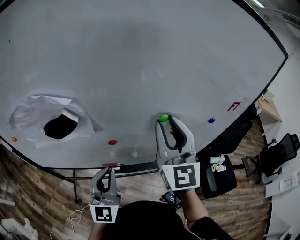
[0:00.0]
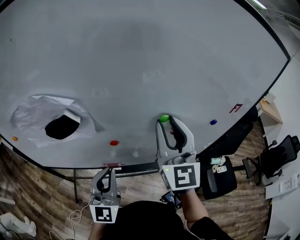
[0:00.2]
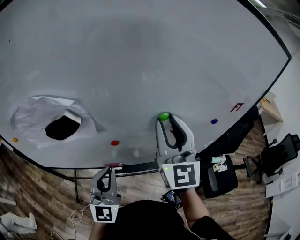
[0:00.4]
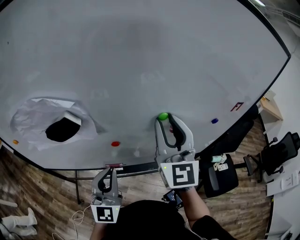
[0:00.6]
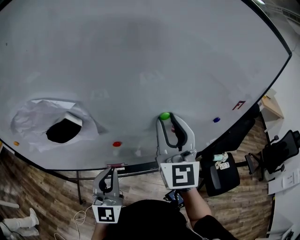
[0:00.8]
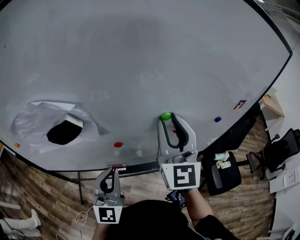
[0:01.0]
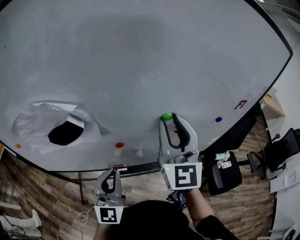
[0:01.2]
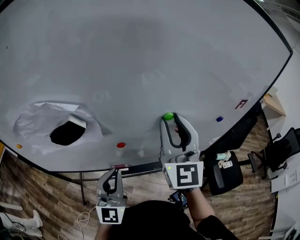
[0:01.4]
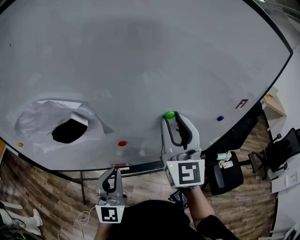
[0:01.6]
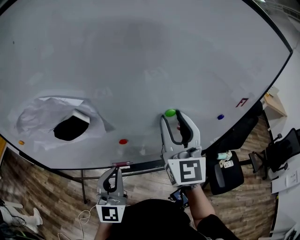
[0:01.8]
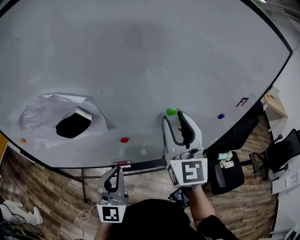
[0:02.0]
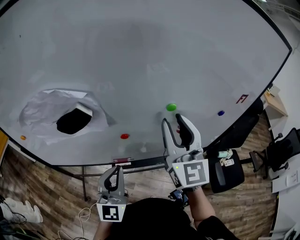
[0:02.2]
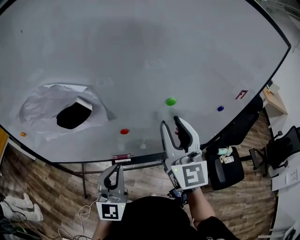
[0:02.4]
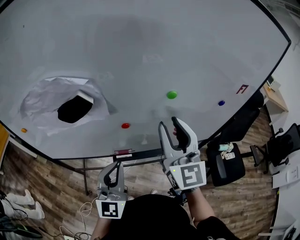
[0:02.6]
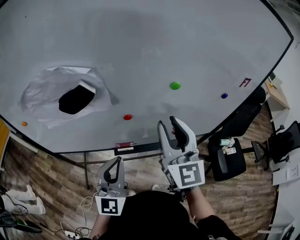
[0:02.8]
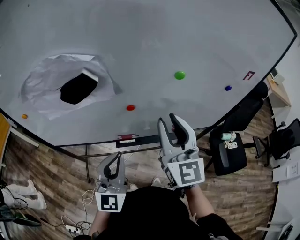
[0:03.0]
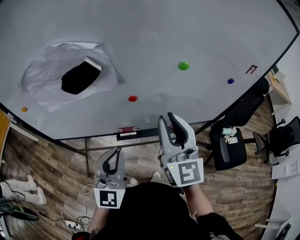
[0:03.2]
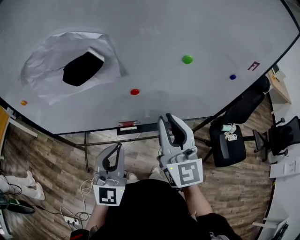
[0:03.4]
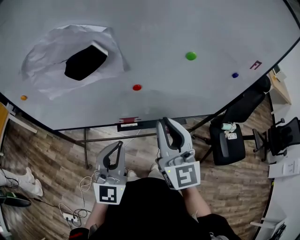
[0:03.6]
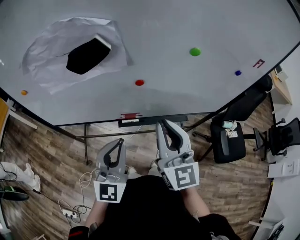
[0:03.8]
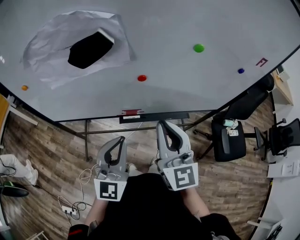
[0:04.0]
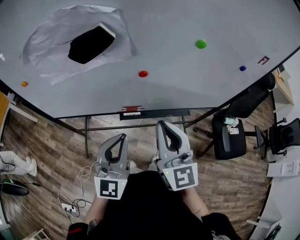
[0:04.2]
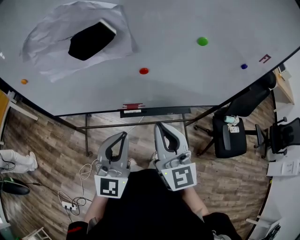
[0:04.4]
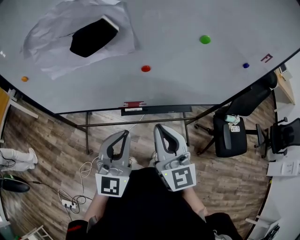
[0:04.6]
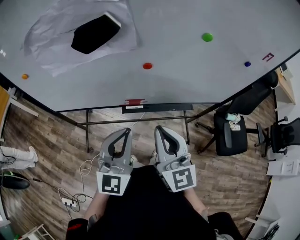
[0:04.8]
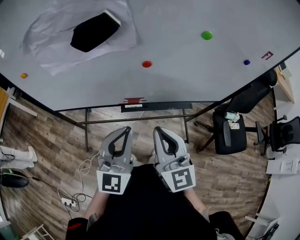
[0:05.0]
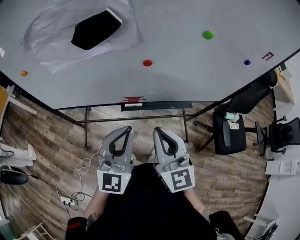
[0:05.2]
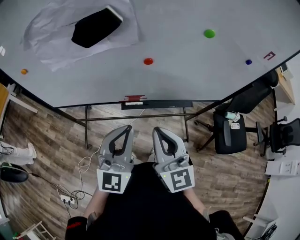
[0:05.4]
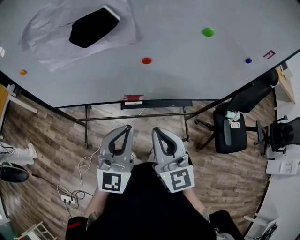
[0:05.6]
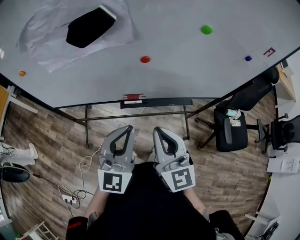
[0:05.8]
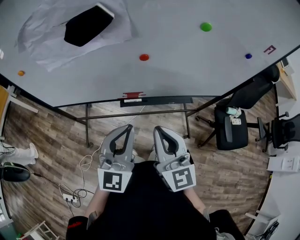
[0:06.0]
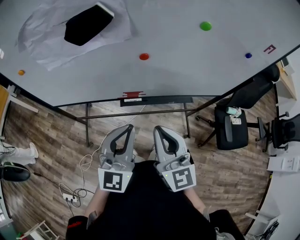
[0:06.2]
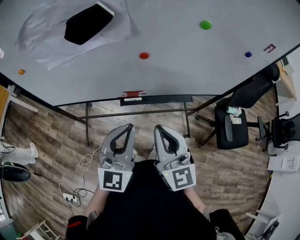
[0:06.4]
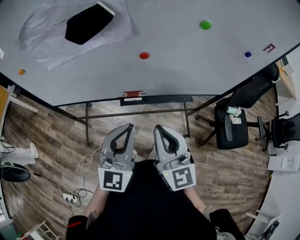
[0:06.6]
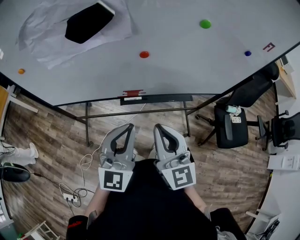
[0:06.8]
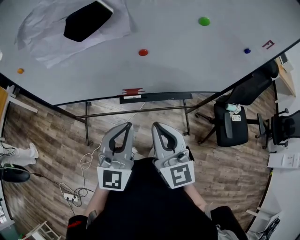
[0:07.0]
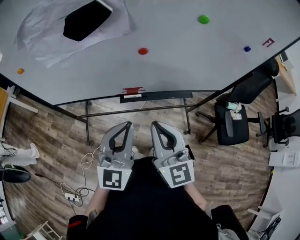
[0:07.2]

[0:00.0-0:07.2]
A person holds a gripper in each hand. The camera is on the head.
0:00.0 to 0:01.4: The grippers move only a little.
0:01.4 to 0:02.8: The right gripper goes approximately 10 cm backward and downward. Meanwhile the left gripper moves backward, roughly 5 cm.
0:02.8 to 0:04.4: The right gripper travels backward, downward and to the left by approximately 15 cm, and closes up, while the left gripper travels backward by about 5 cm.
0:04.4 to 0:05.8: The right gripper moves about 5 cm.
0:05.8 to 0:07.2: The two grippers keep their place.

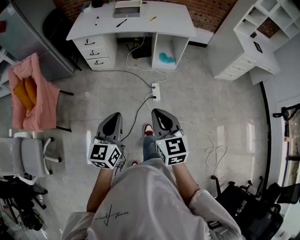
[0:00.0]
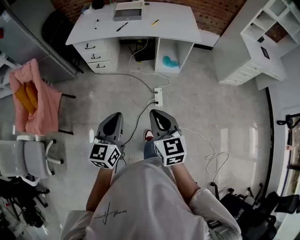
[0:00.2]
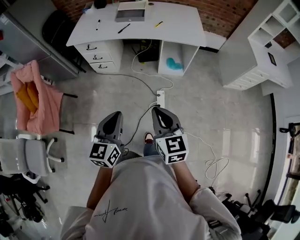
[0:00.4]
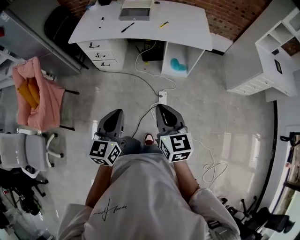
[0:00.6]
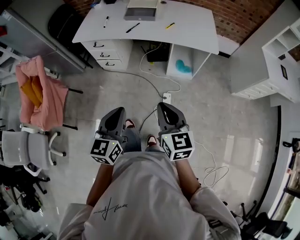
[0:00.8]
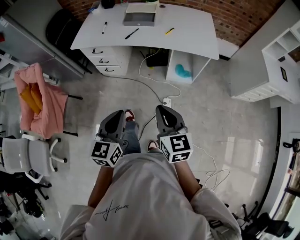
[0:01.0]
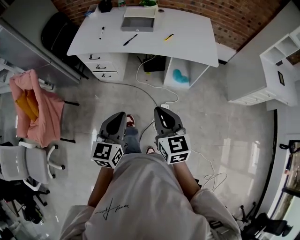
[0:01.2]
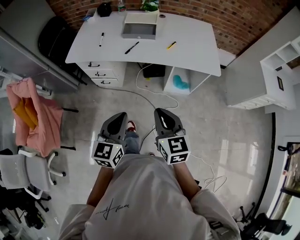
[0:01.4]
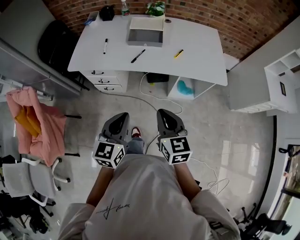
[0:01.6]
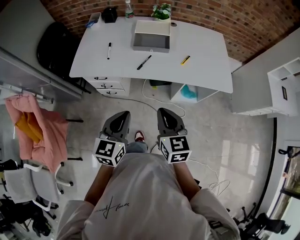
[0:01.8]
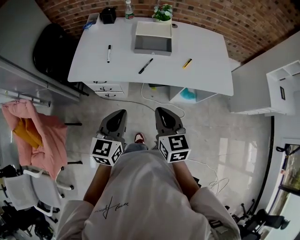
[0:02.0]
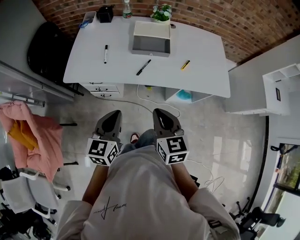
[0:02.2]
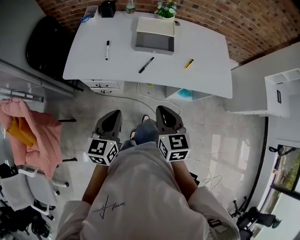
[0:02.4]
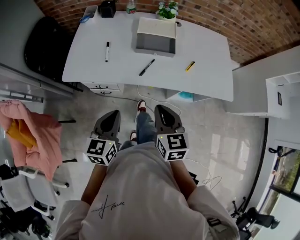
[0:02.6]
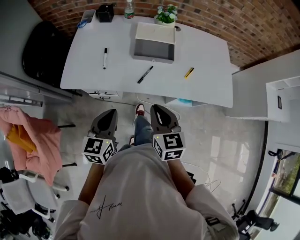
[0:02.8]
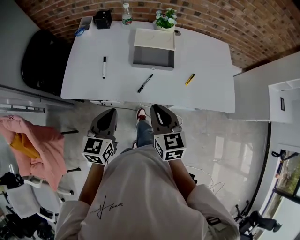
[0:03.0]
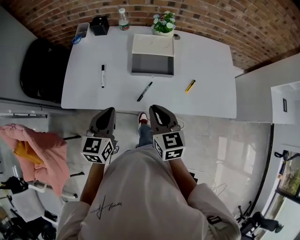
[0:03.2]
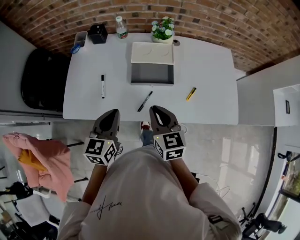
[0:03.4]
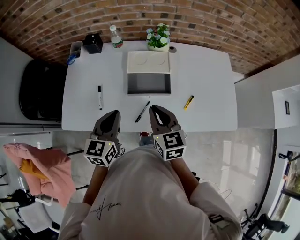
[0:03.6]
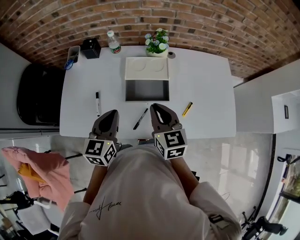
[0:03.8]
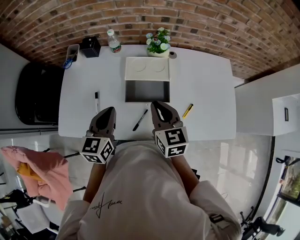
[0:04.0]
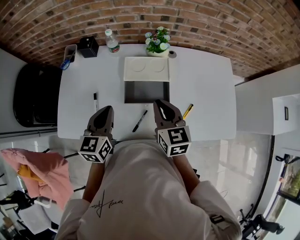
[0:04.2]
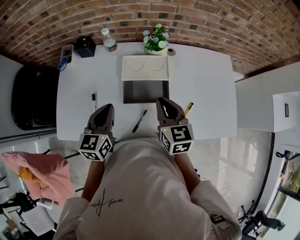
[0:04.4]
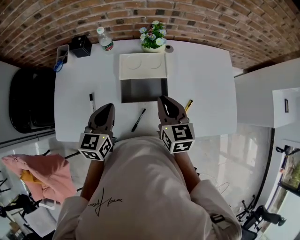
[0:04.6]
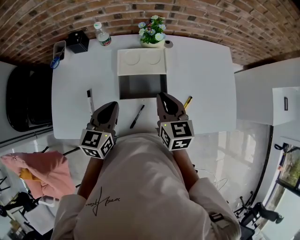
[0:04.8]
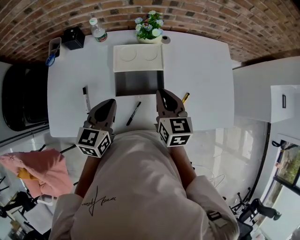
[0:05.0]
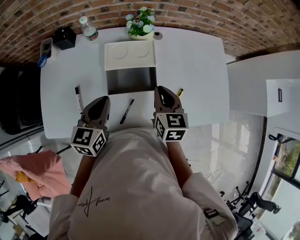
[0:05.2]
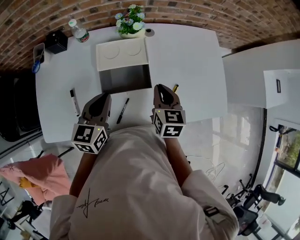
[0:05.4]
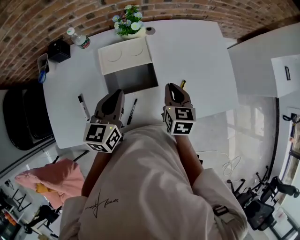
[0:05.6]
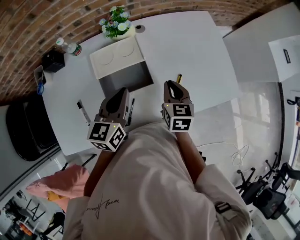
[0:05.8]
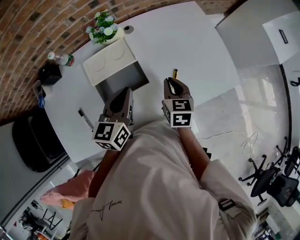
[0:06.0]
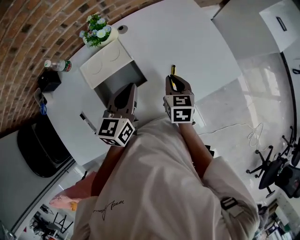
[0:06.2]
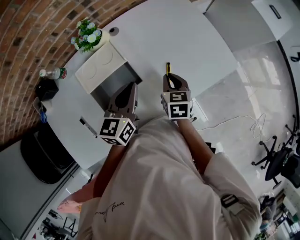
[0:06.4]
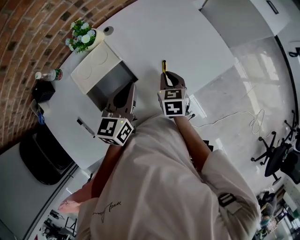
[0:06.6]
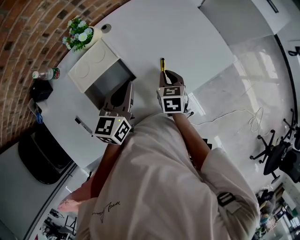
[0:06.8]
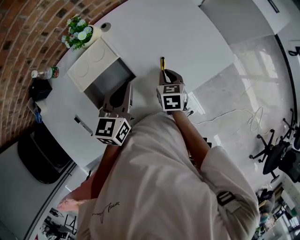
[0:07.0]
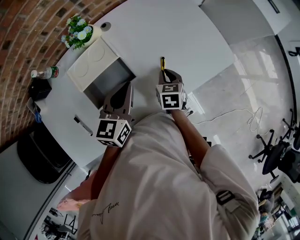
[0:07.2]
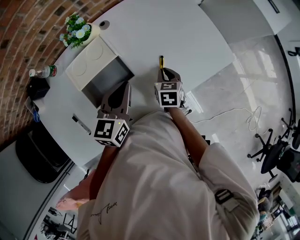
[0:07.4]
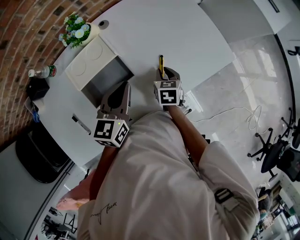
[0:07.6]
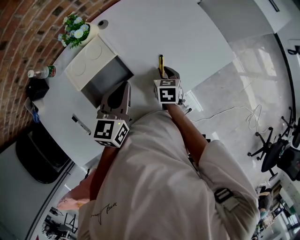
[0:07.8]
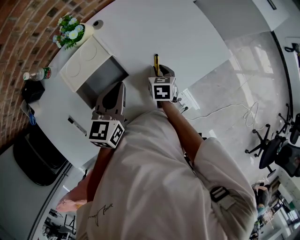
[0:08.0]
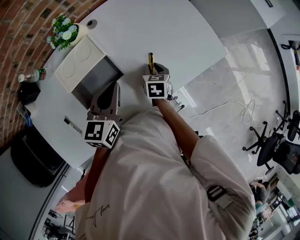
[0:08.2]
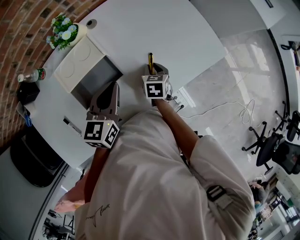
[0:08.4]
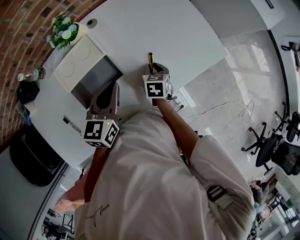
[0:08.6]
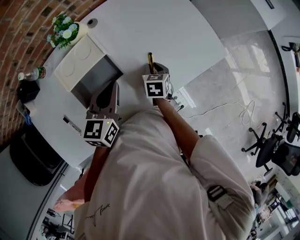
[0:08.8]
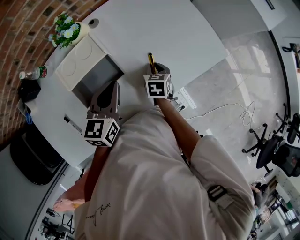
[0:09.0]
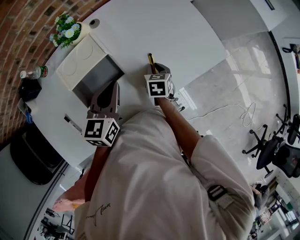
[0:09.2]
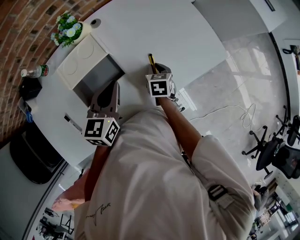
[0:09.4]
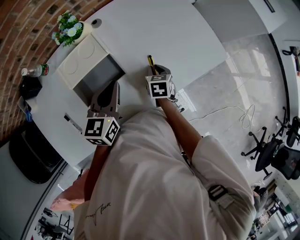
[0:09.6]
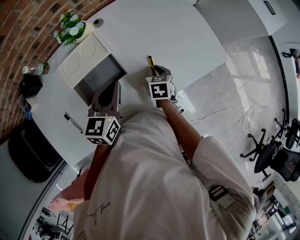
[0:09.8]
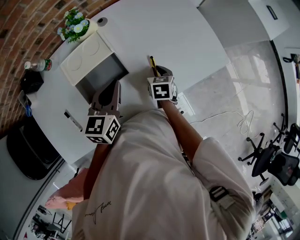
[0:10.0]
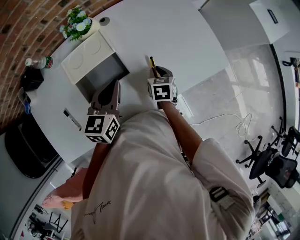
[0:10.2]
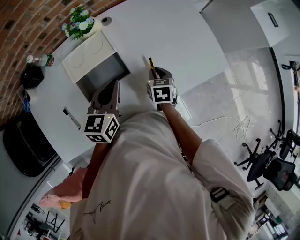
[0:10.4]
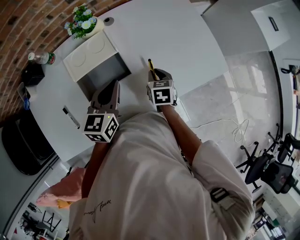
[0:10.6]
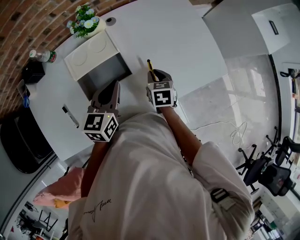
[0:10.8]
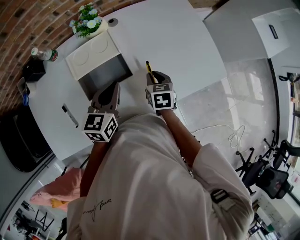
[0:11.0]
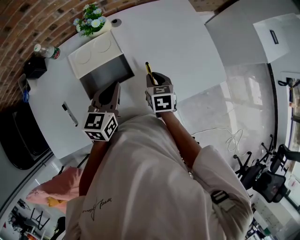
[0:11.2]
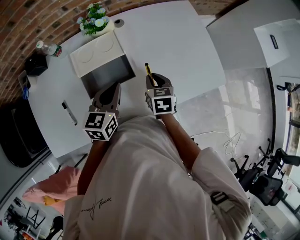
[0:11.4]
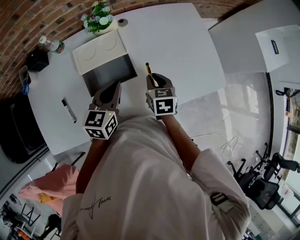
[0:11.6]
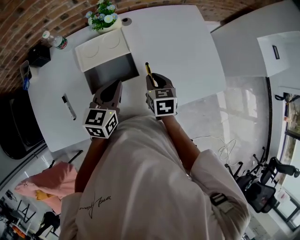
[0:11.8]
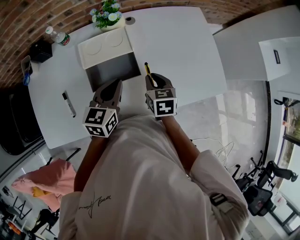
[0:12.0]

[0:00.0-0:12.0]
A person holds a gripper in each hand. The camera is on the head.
0:00.0 to 0:01.6: The pair of grippers is taken forward, roughly 50 cm.
0:01.6 to 0:03.0: The grippers both shift forward and to the left by approximately 30 cm.
0:03.0 to 0:04.4: Both grippers travel together forward, approximately 25 cm.
0:04.4 to 0:06.0: The right gripper moves roughly 20 cm, and changes its angle by about 30 degrees. Meanwhile the left gripper changes place by some 20 cm, and turns by some 30 degrees.
0:06.0 to 0:07.6: The right gripper is displaced downward by roughly 10 cm. Meanwhile the left gripper travels to the right by roughly 5 cm.
0:07.6 to 0:10.4: There are only small adjustments of the grippers.
0:10.4 to 0:12.0: The right gripper goes about 10 cm upward and to the left.

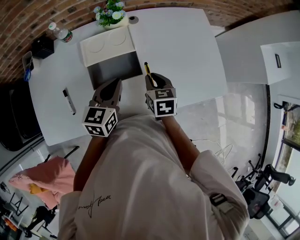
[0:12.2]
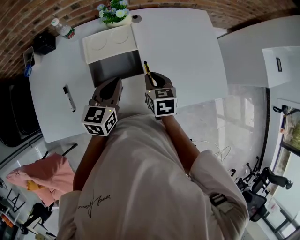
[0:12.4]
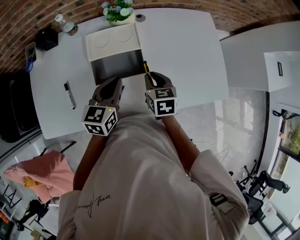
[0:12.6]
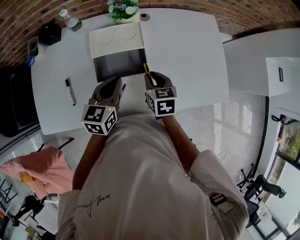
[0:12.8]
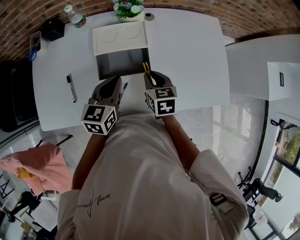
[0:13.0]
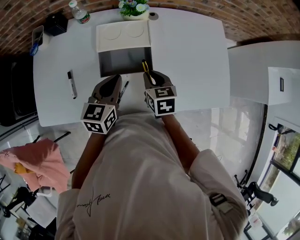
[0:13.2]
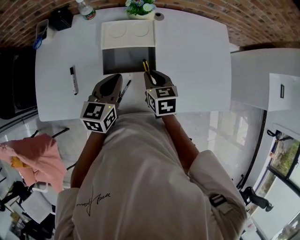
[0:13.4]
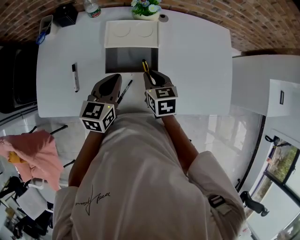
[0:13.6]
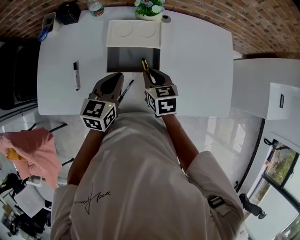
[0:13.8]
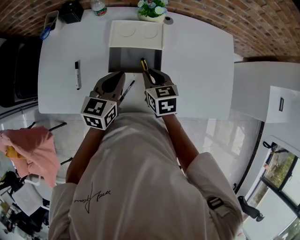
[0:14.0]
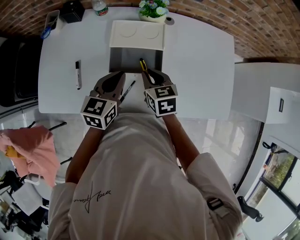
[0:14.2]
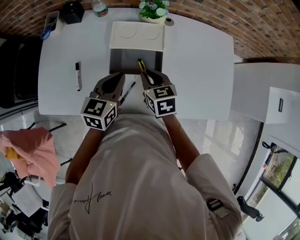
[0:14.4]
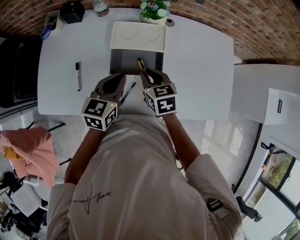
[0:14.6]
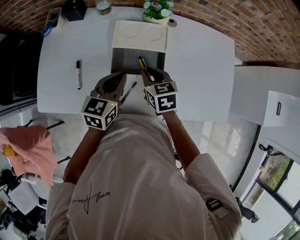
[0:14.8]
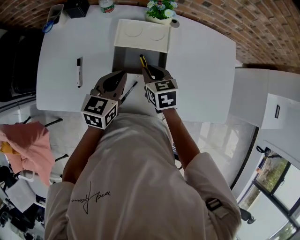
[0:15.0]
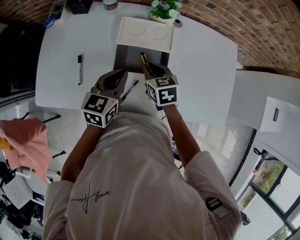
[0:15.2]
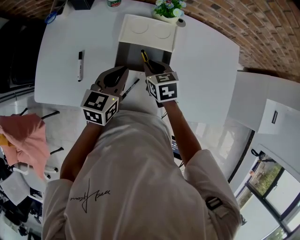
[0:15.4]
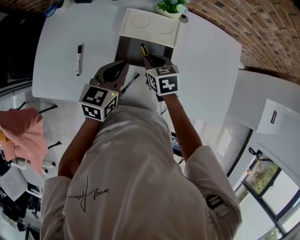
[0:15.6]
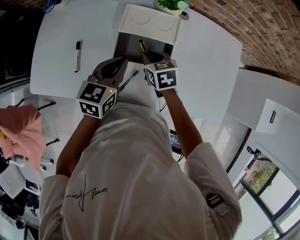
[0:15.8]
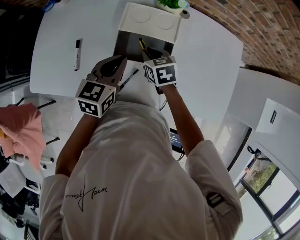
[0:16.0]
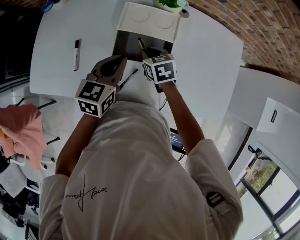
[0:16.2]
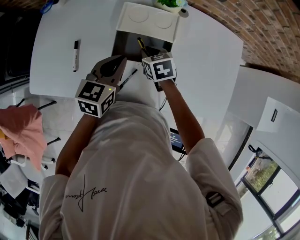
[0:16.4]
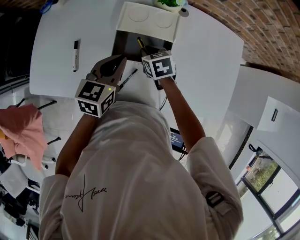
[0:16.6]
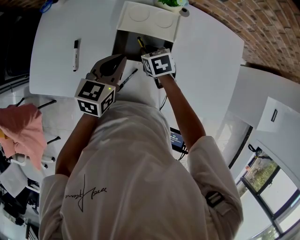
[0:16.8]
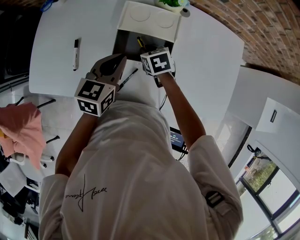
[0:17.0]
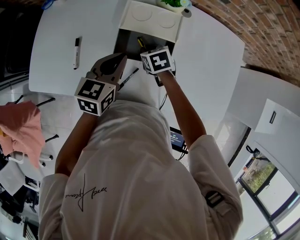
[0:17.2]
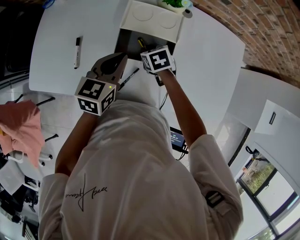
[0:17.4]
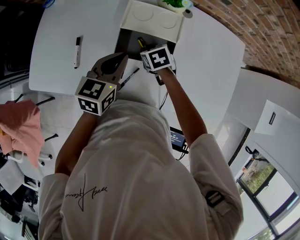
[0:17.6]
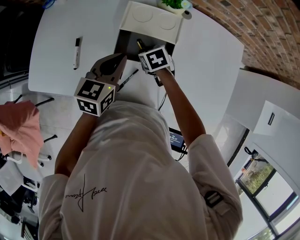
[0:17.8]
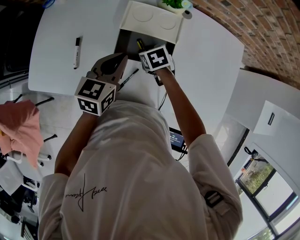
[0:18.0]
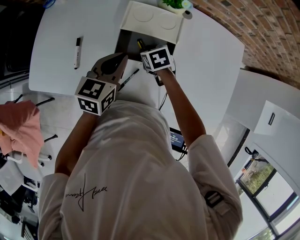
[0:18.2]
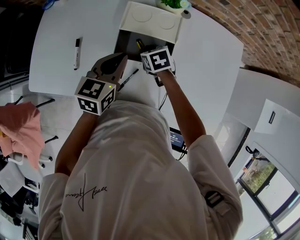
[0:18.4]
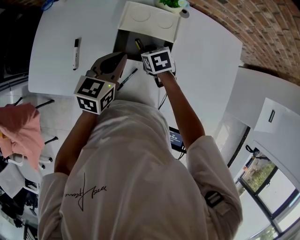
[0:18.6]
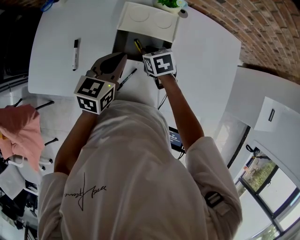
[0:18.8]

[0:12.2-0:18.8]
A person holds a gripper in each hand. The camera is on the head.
0:12.2 to 0:13.8: The grippers both shift to the left by some 5 cm.
0:13.8 to 0:15.4: The right gripper ends up roughly 5 cm from where it was.
0:15.4 to 0:17.2: The right gripper heads downward, covering approximately 5 cm.
0:17.2 to 0:18.8: There are only small adjustments of the grippers.
